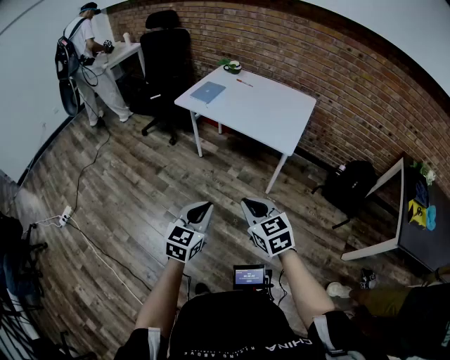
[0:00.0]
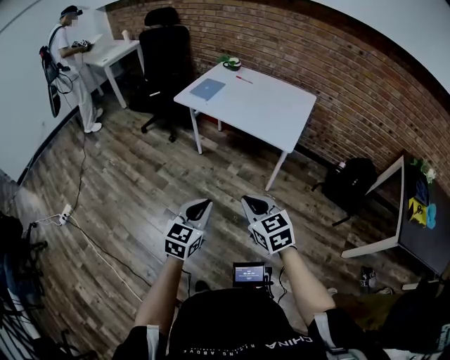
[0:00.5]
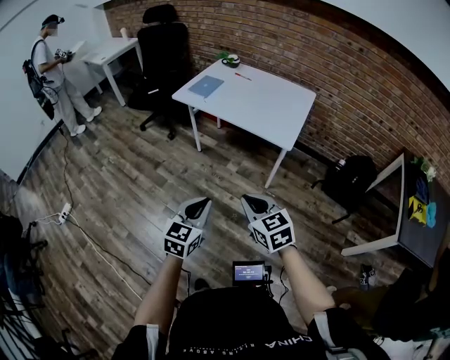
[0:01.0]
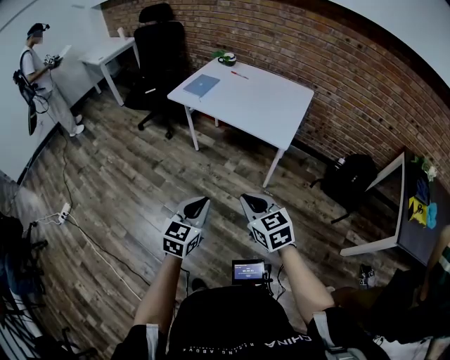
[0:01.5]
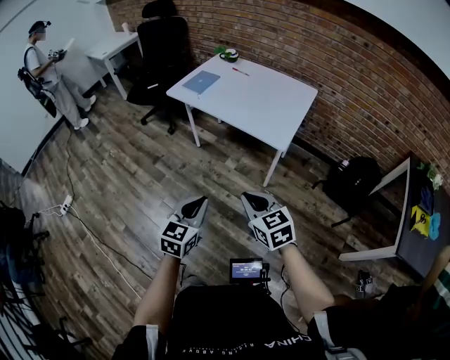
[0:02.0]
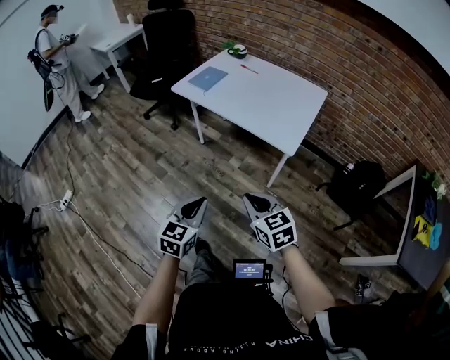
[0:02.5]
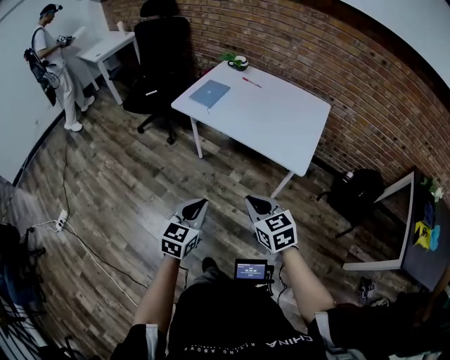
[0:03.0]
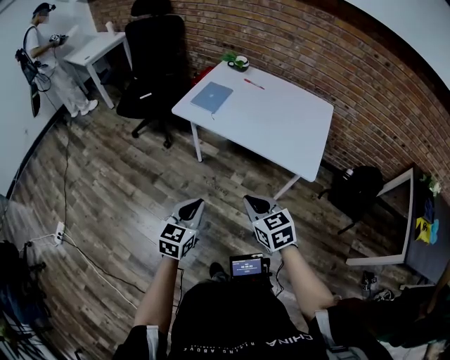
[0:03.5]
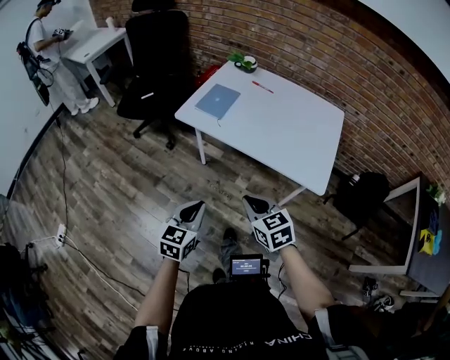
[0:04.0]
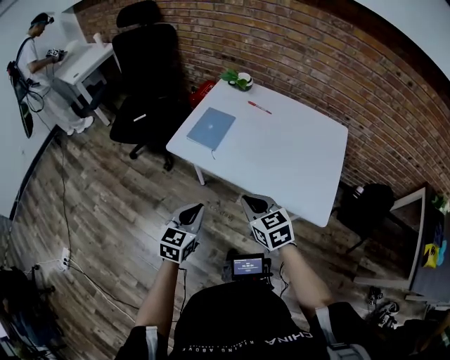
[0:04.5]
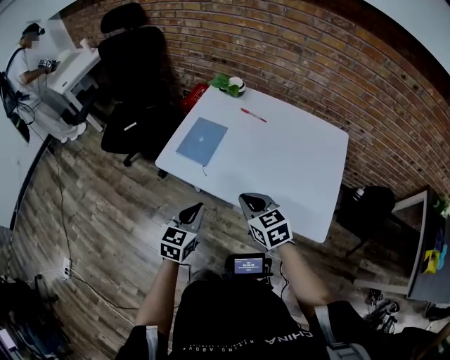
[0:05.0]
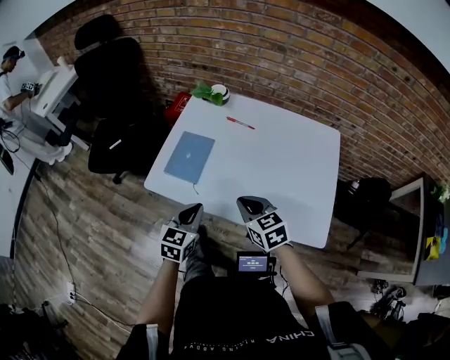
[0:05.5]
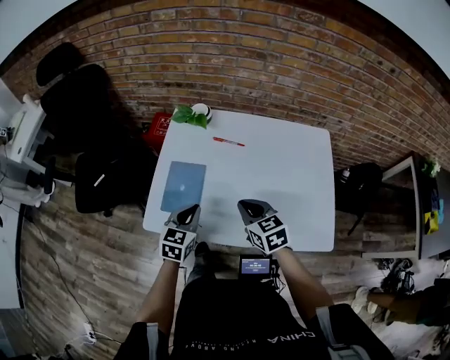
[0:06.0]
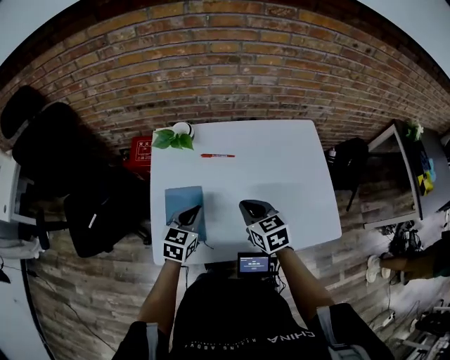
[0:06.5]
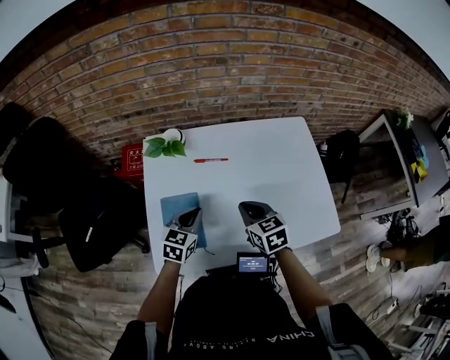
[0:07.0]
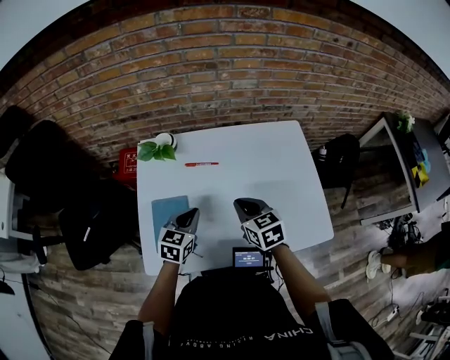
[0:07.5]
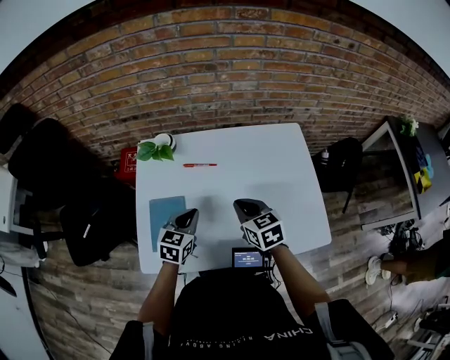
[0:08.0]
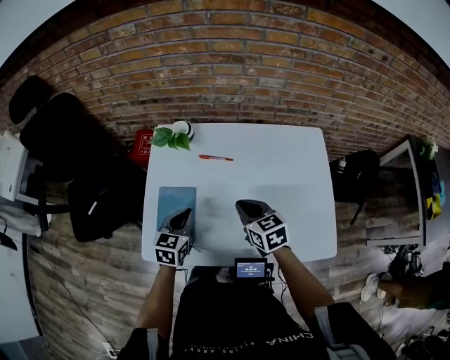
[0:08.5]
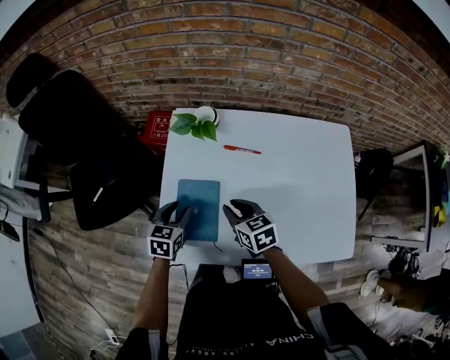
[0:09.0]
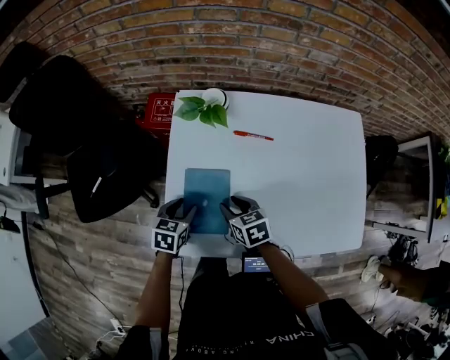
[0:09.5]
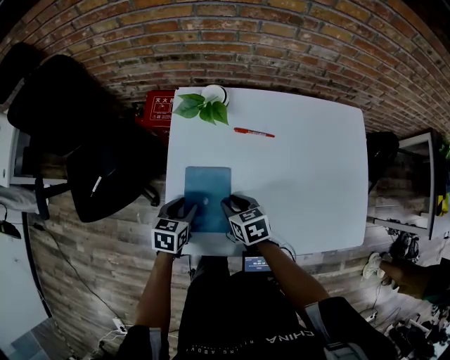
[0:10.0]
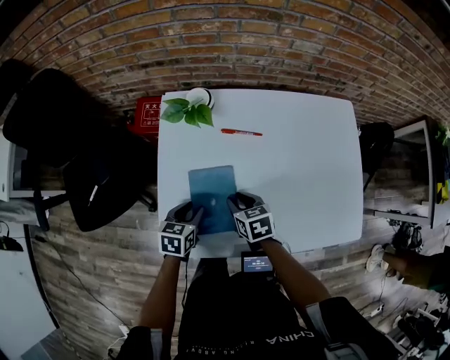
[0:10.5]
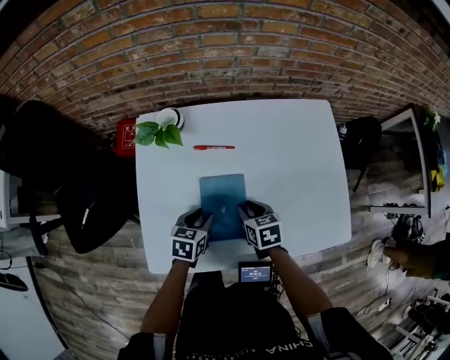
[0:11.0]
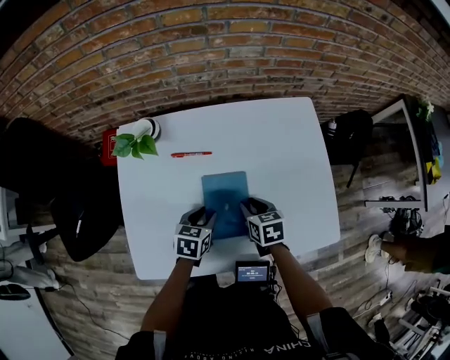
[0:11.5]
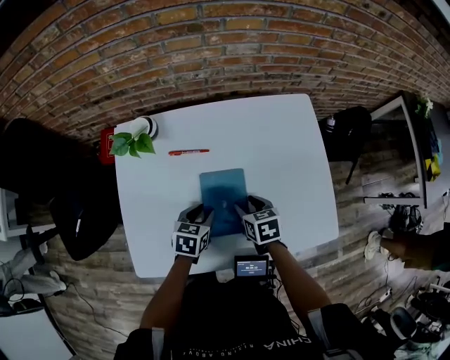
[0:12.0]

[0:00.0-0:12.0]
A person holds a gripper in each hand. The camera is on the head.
0:00.0 to 0:02.0: The two grippers go about 10 cm to the right.
0:02.0 to 0:04.0: The grippers both shift forward and to the left by about 35 cm.
0:04.0 to 0:06.0: The two grippers go about 40 cm forward. The right gripper turns by about 20 degrees.
0:06.0 to 0:08.0: Both grippers travel together forward, about 10 cm.
0:08.0 to 0:10.0: The grippers both shift to the left and downward by about 25 cm. The left gripper swivels approximately 30 degrees, and opens up; the right gripper swivels roughly 20 degrees, and opens.
0:10.0 to 0:12.0: Both grippers travel together to the right, some 25 cm.

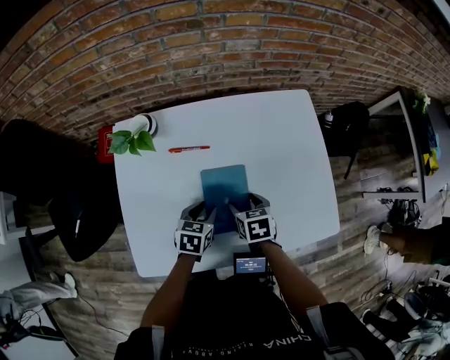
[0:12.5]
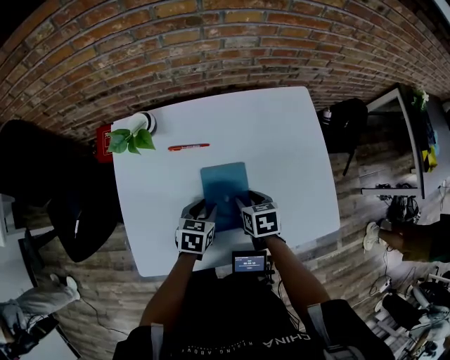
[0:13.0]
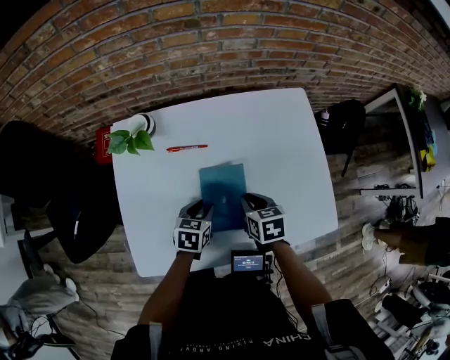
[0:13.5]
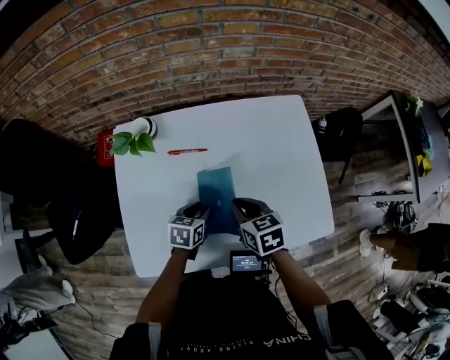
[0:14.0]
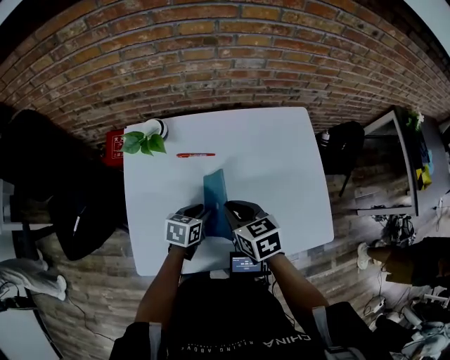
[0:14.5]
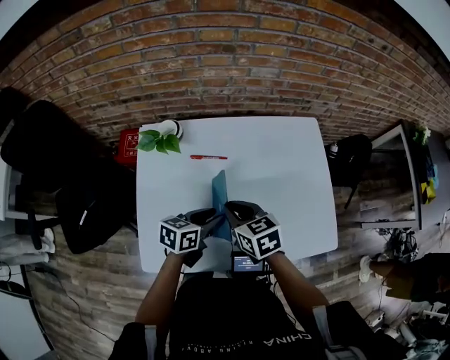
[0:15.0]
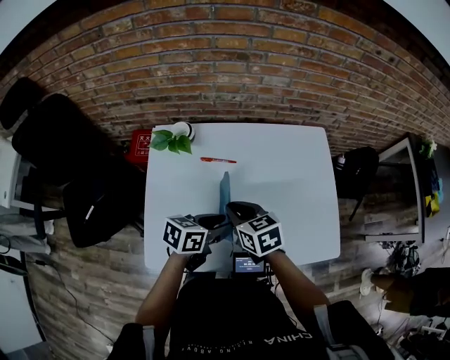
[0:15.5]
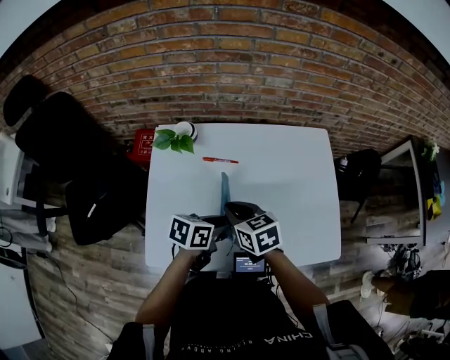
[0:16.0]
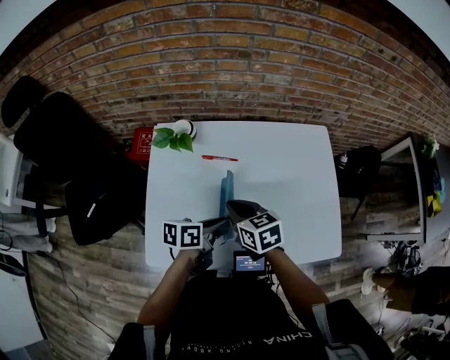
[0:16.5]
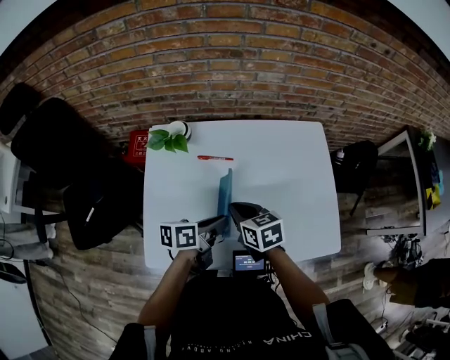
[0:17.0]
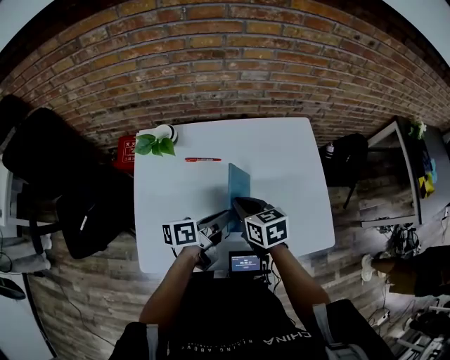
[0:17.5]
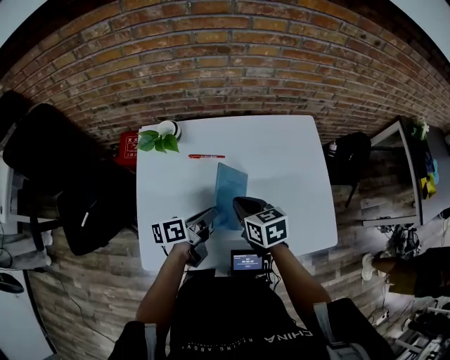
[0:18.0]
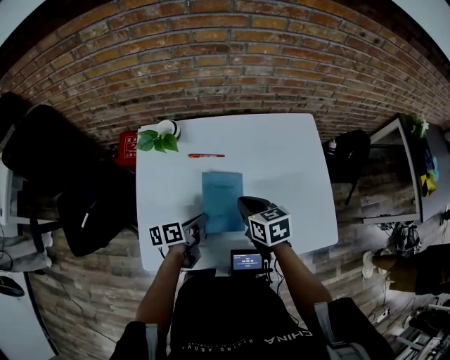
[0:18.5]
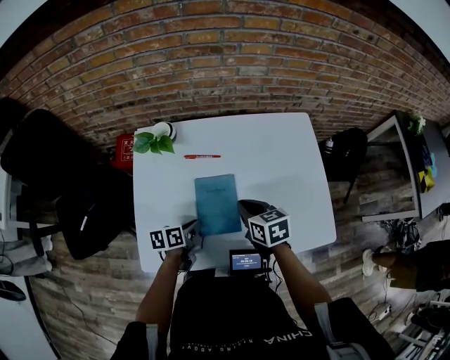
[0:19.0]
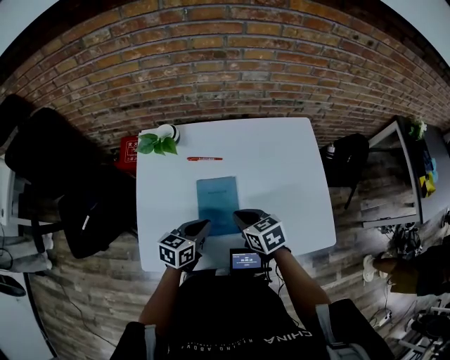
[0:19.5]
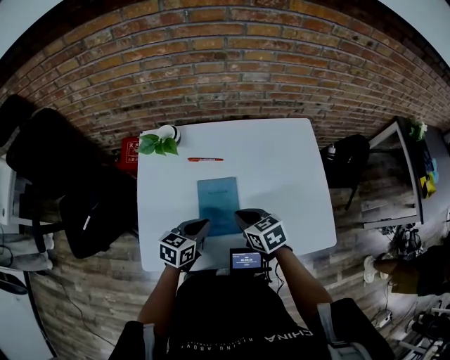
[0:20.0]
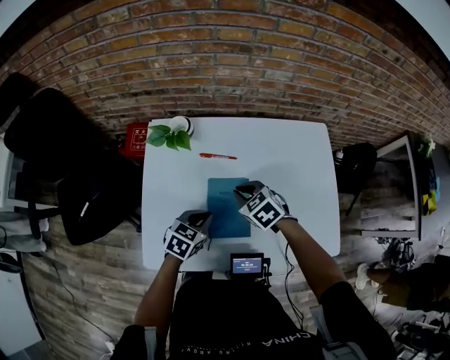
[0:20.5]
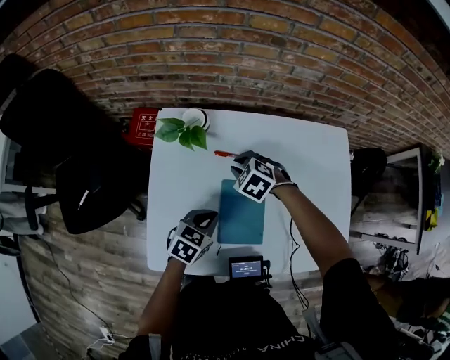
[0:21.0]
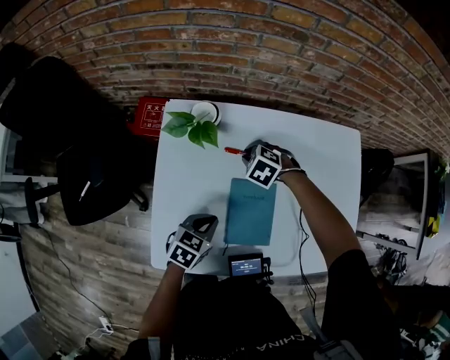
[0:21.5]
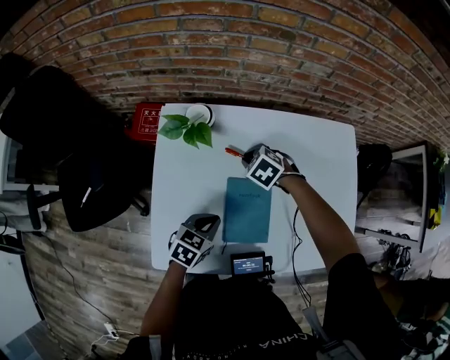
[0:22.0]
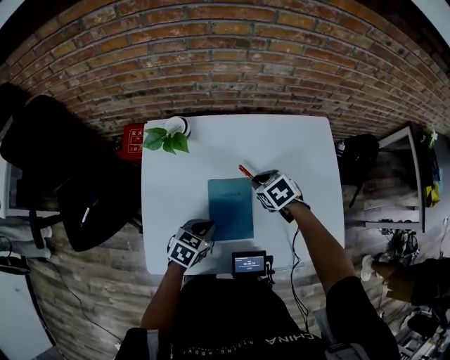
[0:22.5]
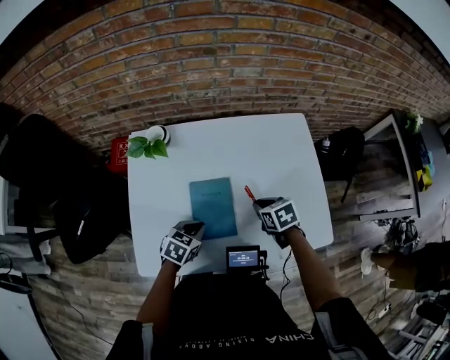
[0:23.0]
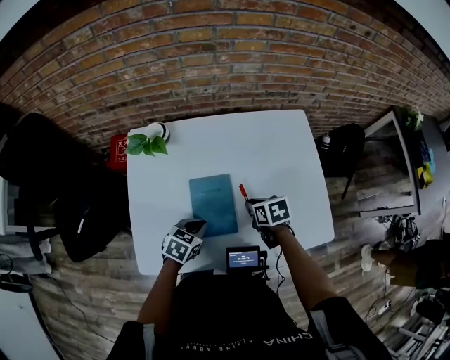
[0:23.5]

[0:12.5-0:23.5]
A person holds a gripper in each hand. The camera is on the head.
0:12.5 to 0:14.5: The right gripper goes roughly 15 cm upward and to the left, swivels approximately 20 degrees, and closes.
0:14.5 to 0:16.0: The right gripper shifts about 5 cm to the left; the left gripper heads upward, covering some 10 cm.
0:16.0 to 0:18.0: The right gripper is displaced to the right by roughly 5 cm. The left gripper rotates about 30 degrees, and closes its fingers.
0:18.0 to 0:20.0: The right gripper changes place by approximately 5 cm. Meanwhile the left gripper reaches about 10 cm downward, then returns, and twists roughly 40 degrees clockwise, seen from behind.
0:20.0 to 0:21.5: The right gripper goes about 25 cm forward and to the left, and twists roughly 50 degrees counterclockwise, seen from behind. The left gripper moves to the left and downward, some 10 cm.
0:21.5 to 0:23.5: The right gripper travels to the right and backward by some 25 cm, and rolls clockwise, seen from behind, by approximately 70 degrees, while the left gripper goes about 10 cm to the right.

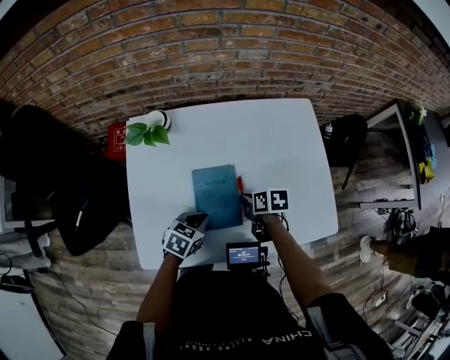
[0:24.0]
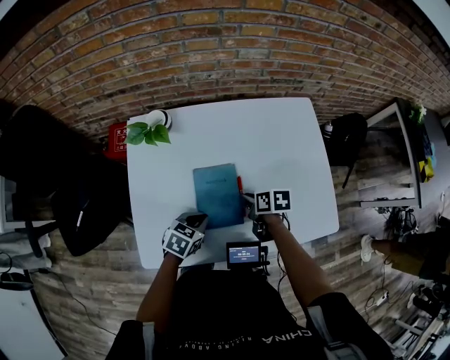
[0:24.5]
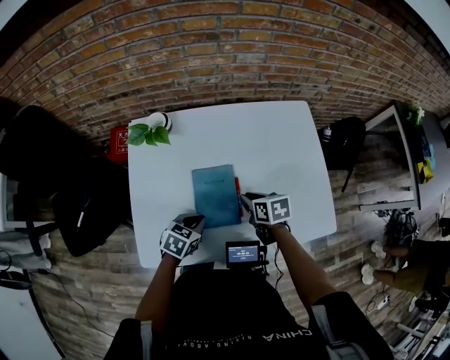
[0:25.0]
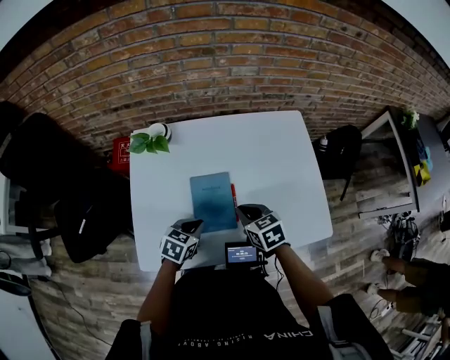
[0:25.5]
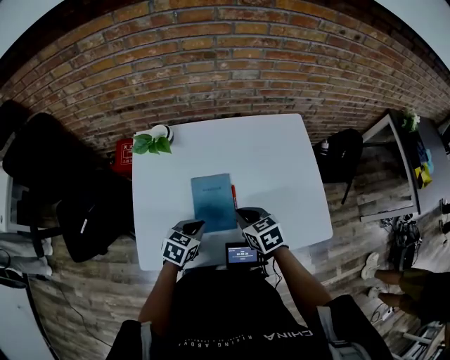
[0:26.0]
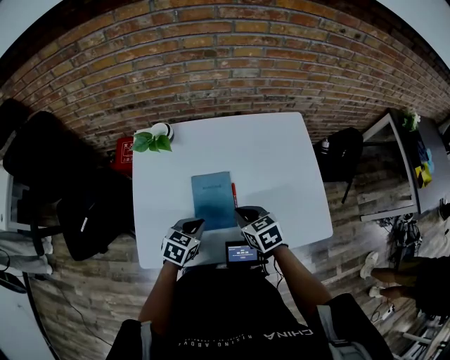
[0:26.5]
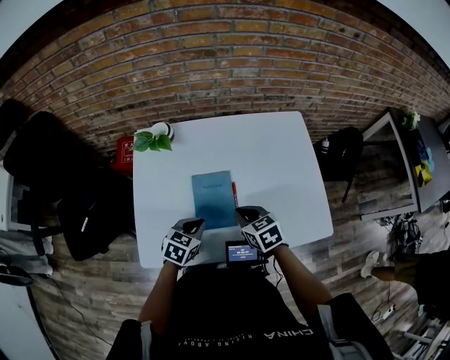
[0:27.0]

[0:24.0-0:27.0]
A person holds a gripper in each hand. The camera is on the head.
0:24.0 to 0:25.5: The right gripper moves upward, approximately 10 cm, and turns by some 40 degrees.
0:25.5 to 0:27.0: The grippers stay close to where they were, moving slightly.

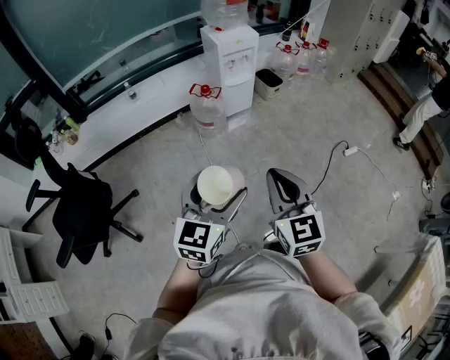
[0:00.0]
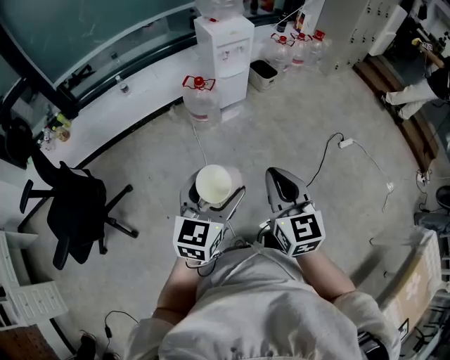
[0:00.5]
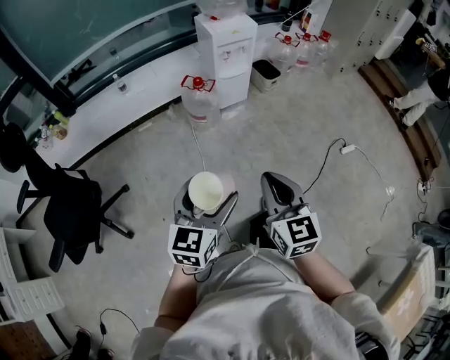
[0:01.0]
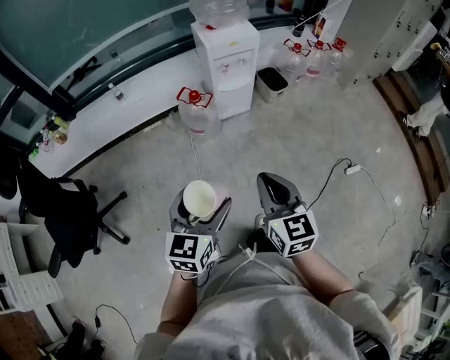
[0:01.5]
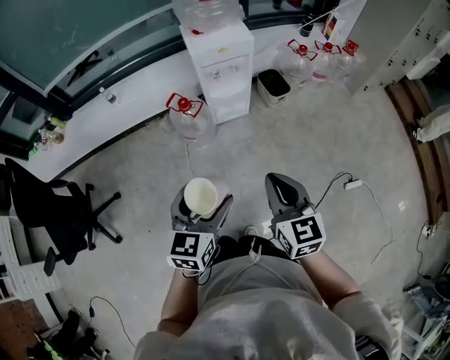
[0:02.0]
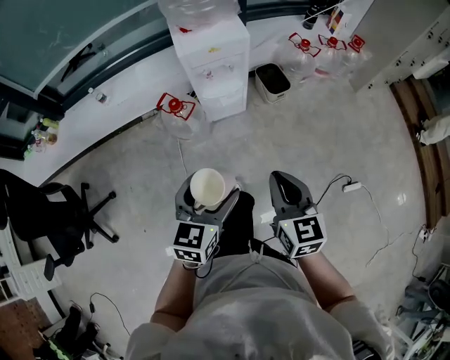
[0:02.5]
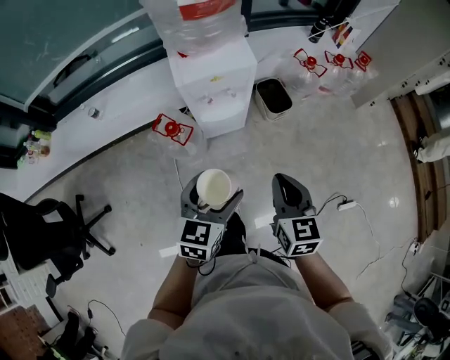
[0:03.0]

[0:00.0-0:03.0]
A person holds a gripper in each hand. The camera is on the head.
0:00.0 to 0:01.5: The grippers both shift forward by some 20 cm.
0:01.5 to 0:03.0: The two grippers go about 40 cm forward and to the right.
